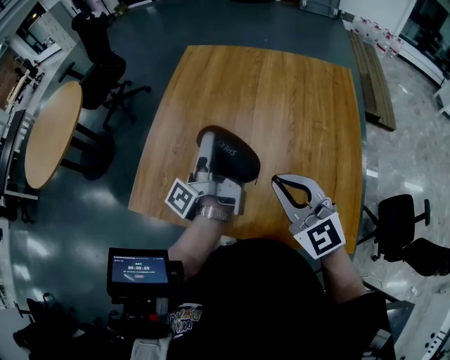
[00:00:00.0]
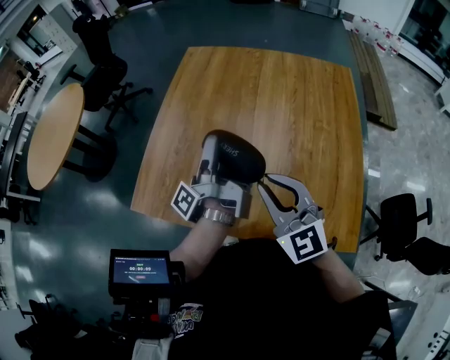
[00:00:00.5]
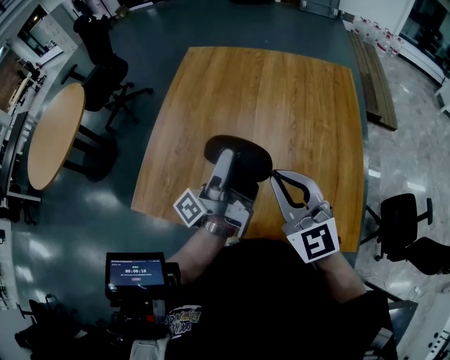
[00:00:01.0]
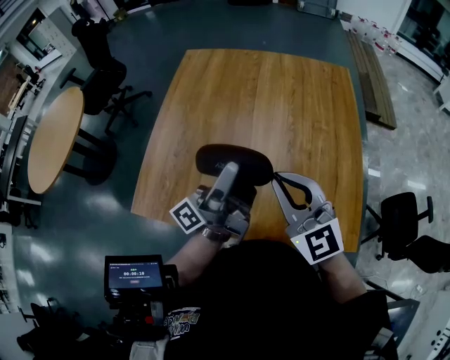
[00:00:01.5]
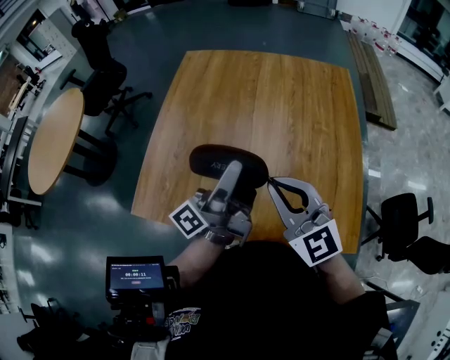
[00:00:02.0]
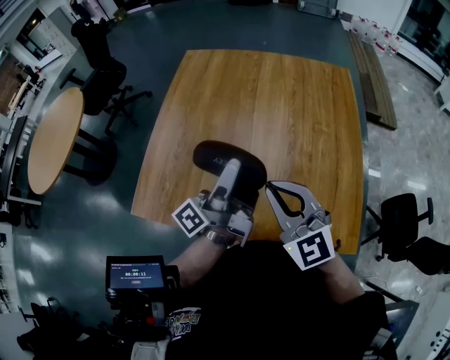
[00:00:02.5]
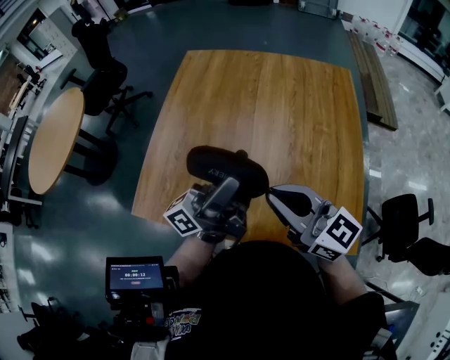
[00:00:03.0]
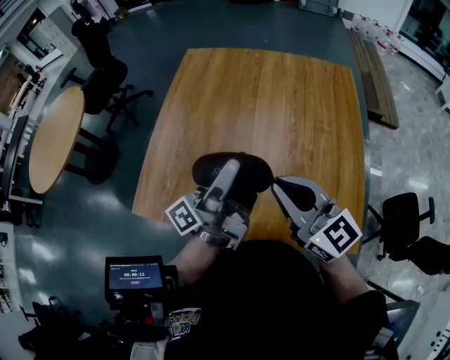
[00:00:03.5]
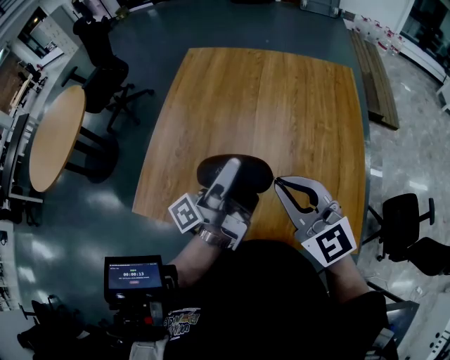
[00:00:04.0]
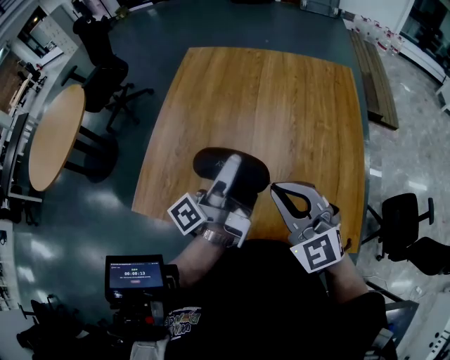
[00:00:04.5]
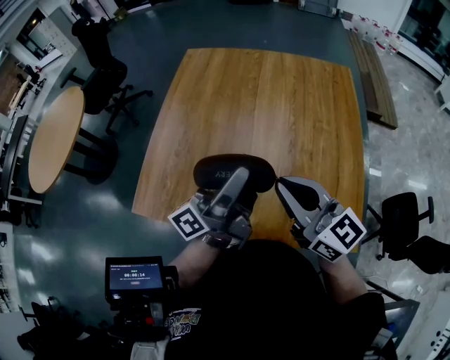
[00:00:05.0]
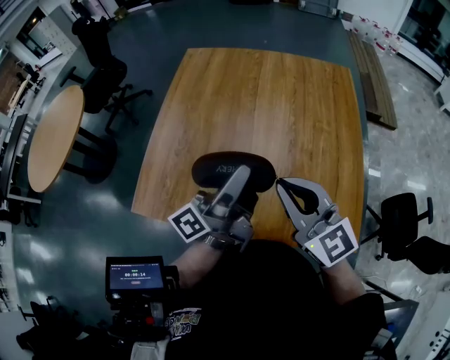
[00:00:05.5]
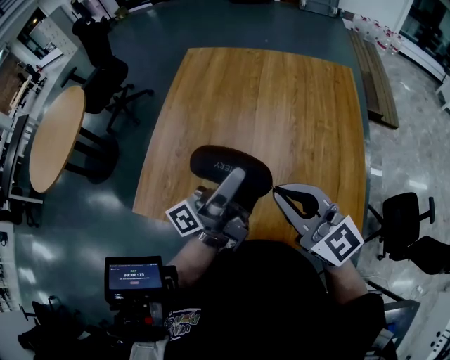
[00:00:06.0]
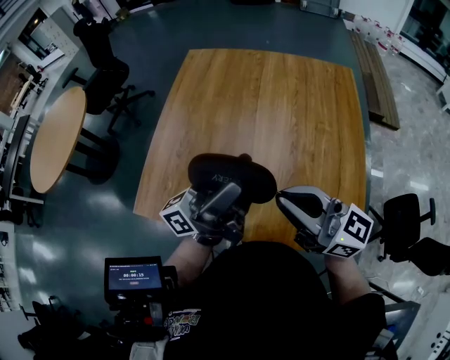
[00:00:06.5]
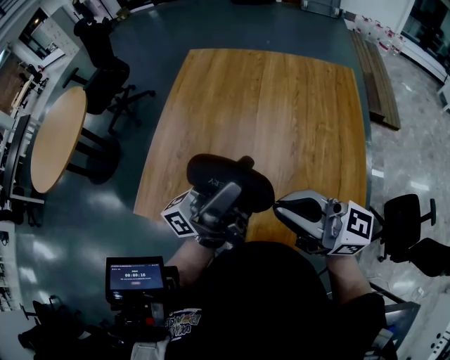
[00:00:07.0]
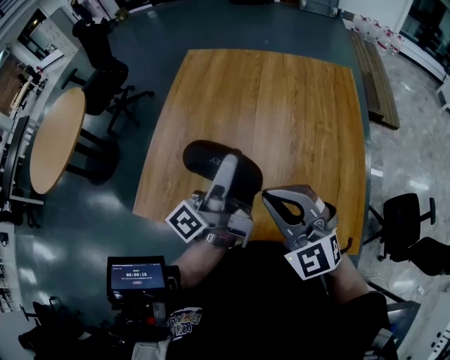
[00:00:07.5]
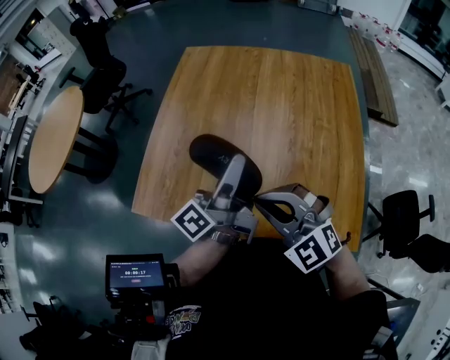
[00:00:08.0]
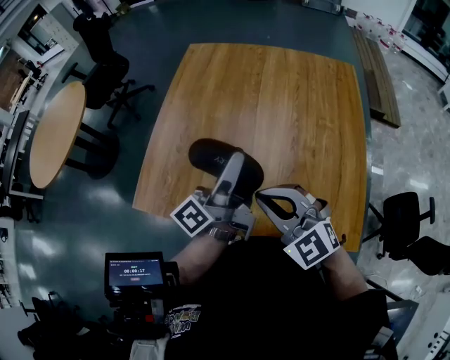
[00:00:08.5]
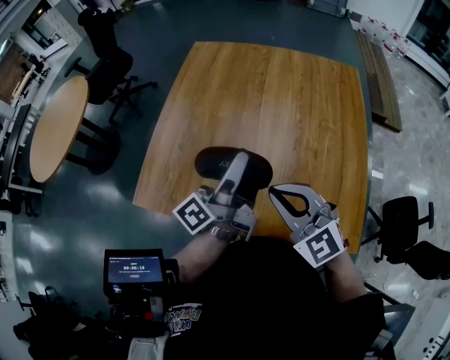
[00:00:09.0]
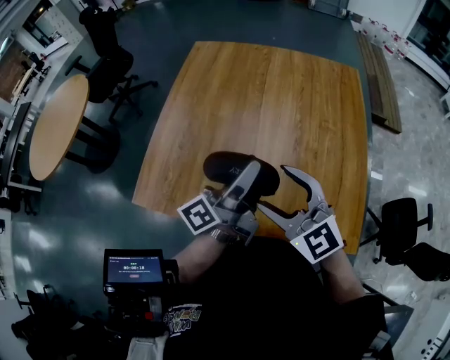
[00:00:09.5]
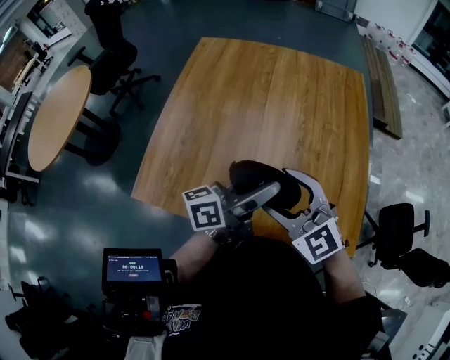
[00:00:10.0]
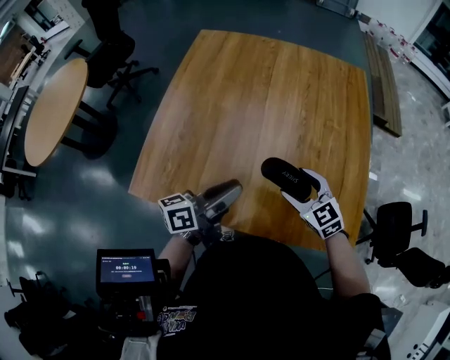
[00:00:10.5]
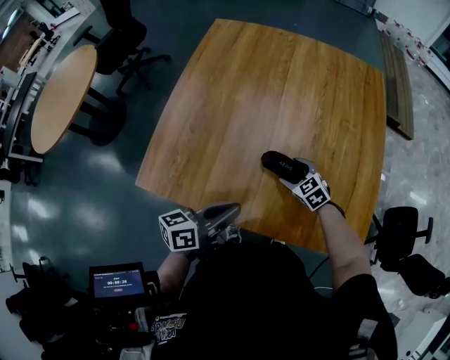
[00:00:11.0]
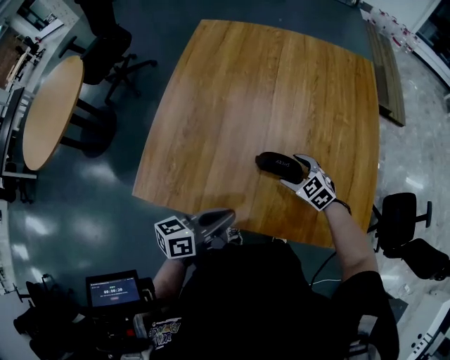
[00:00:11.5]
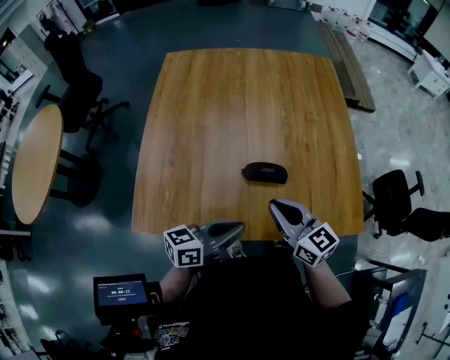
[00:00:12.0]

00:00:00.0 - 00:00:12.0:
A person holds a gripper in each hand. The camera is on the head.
00:00:00.0 - 00:00:02.0: The left gripper goes approximately 10 cm backward, to the right and upward, and changes its angle by some 30 degrees.
00:00:06.0 - 00:00:08.0: The right gripper moves some 5 cm, and changes its angle by some 40 degrees. The left gripper goes upward and returns, approximately 5 cm each way.
00:00:08.0 - 00:00:10.0: The left gripper travels backward by roughly 5 cm, and turns by some 30 degrees; the right gripper opens its fingers.
00:00:10.0 - 00:00:12.0: The left gripper shifts some 15 cm downward, backward and to the left, changes its angle by about 30 degrees, and closes its fingers; the right gripper moves some 30 cm downward and comes back, twists approximately 40 degrees clockwise, seen from behind, and closes up.

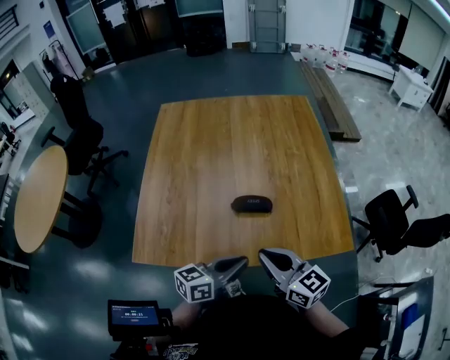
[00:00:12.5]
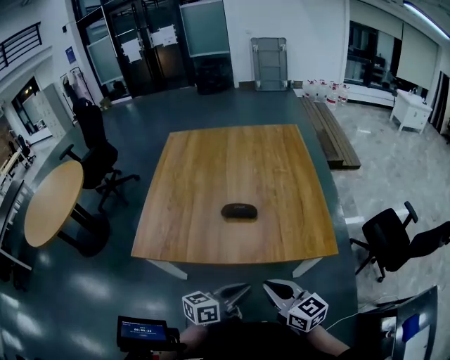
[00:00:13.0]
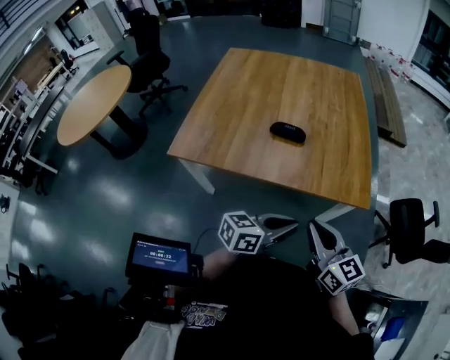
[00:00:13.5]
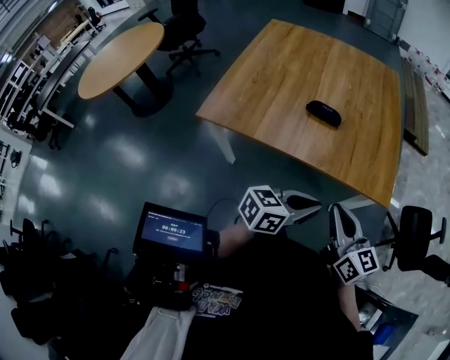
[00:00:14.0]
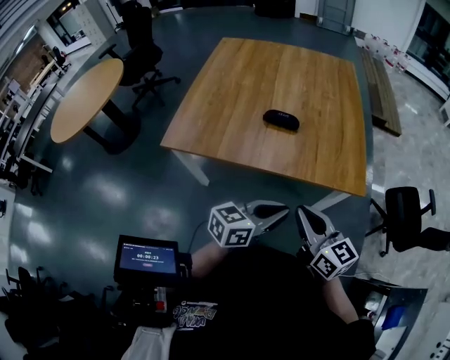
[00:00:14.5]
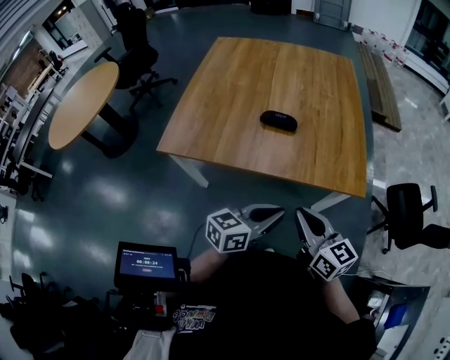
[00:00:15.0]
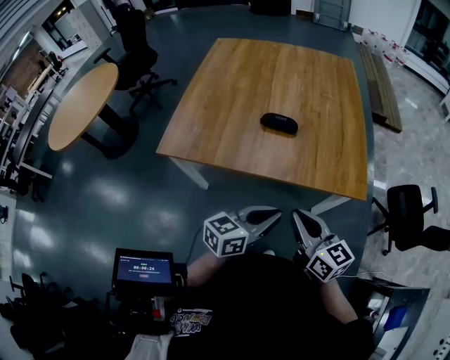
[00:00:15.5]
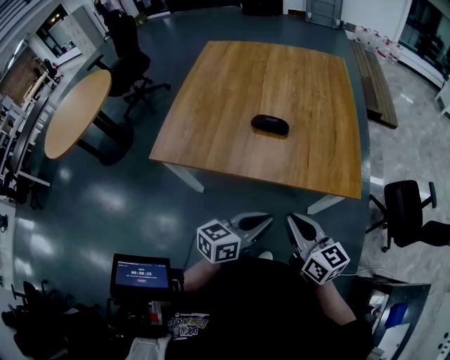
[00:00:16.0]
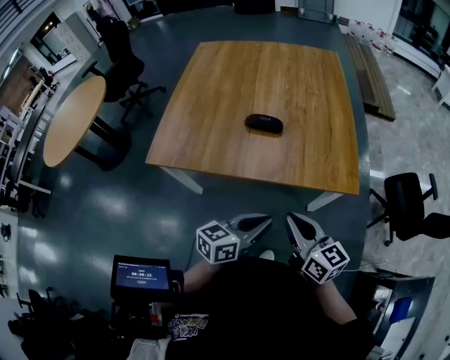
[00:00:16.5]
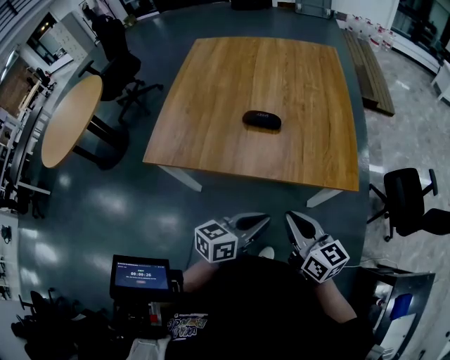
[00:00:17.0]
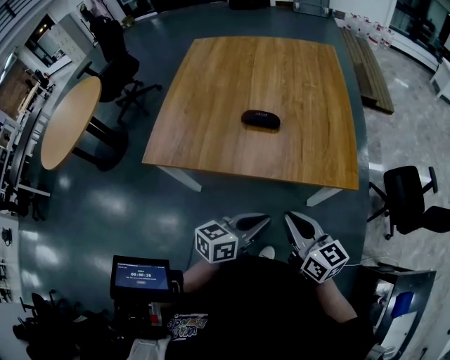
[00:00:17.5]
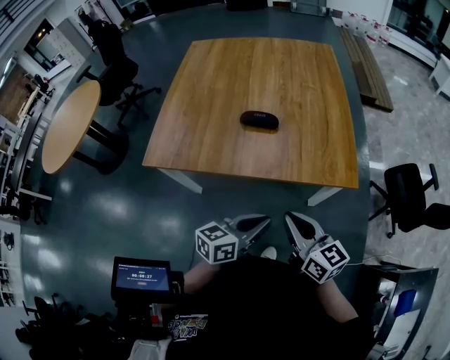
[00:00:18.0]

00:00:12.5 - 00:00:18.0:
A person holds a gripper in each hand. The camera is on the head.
00:00:12.5 - 00:00:14.5: The two grippers go roughly 20 cm backward and to the right.
00:00:14.5 - 00:00:18.0: The grippers make only small movements.

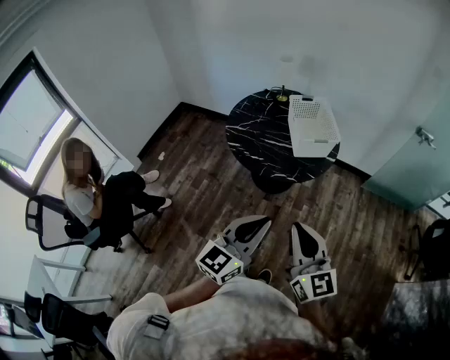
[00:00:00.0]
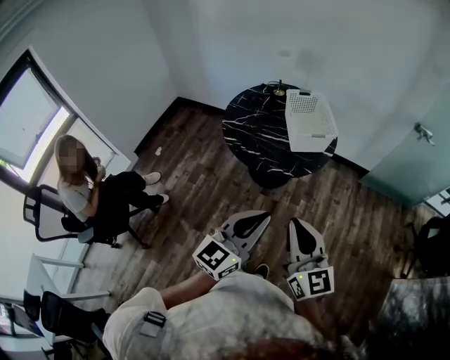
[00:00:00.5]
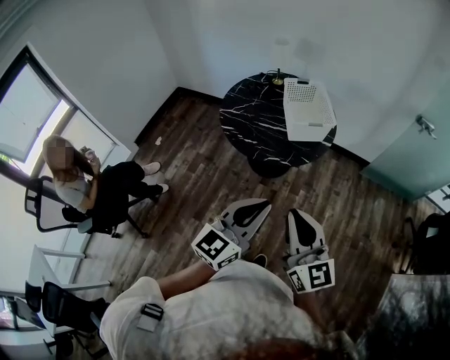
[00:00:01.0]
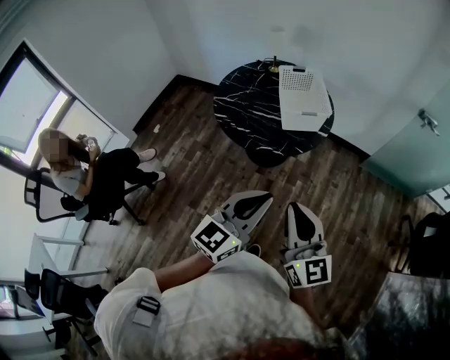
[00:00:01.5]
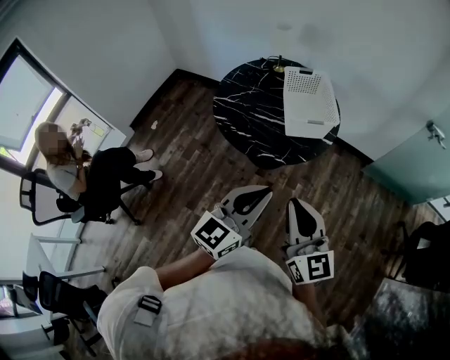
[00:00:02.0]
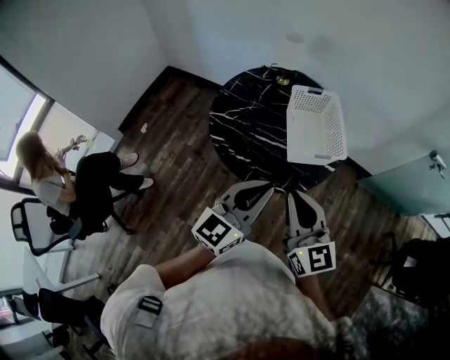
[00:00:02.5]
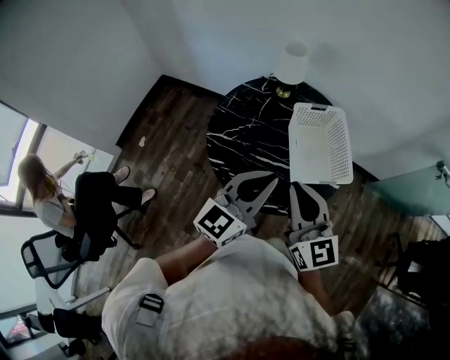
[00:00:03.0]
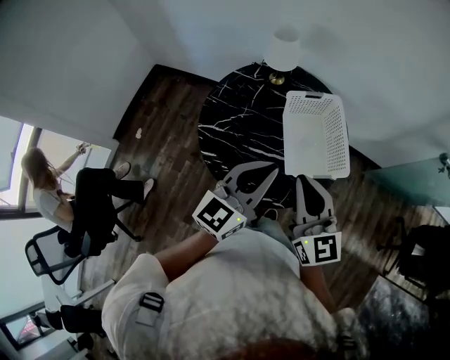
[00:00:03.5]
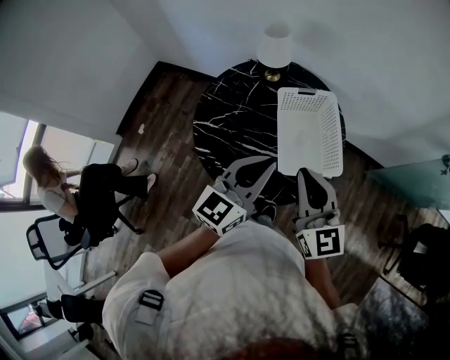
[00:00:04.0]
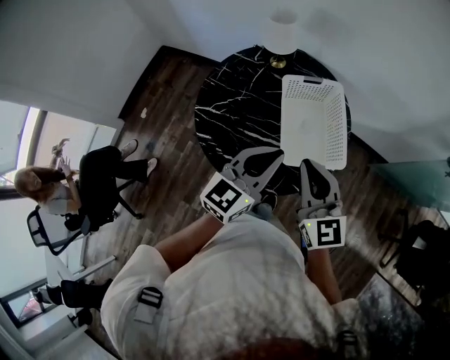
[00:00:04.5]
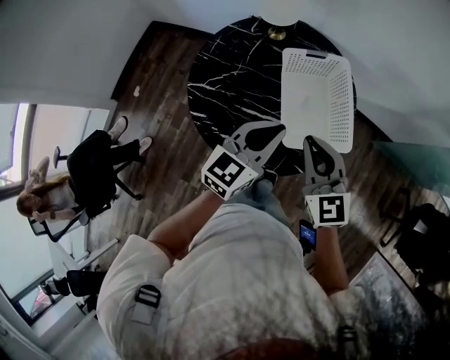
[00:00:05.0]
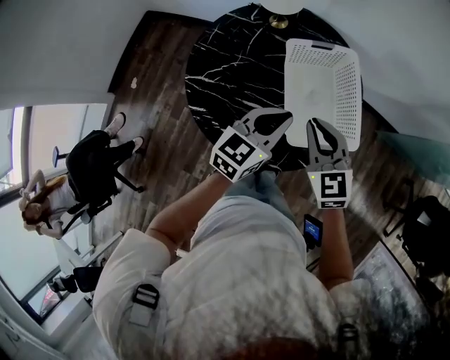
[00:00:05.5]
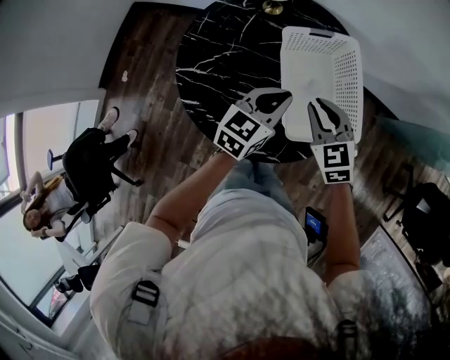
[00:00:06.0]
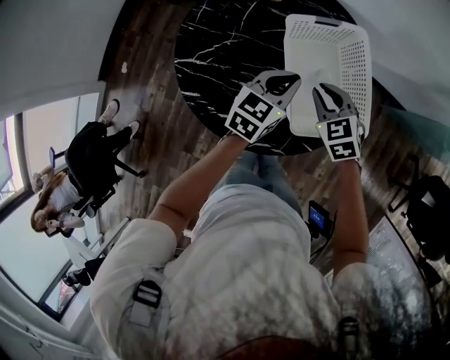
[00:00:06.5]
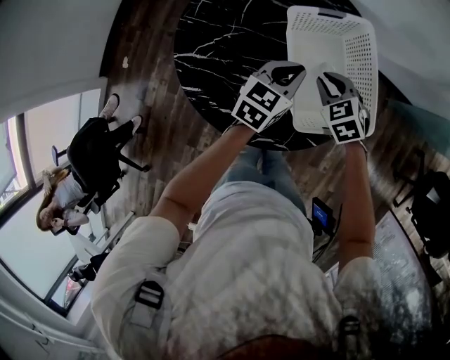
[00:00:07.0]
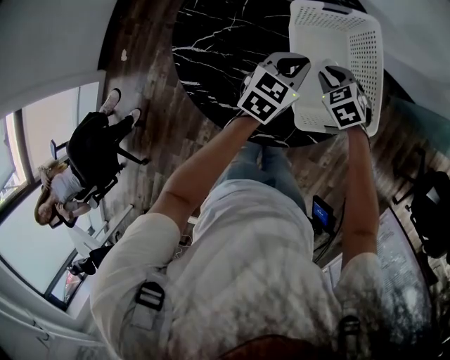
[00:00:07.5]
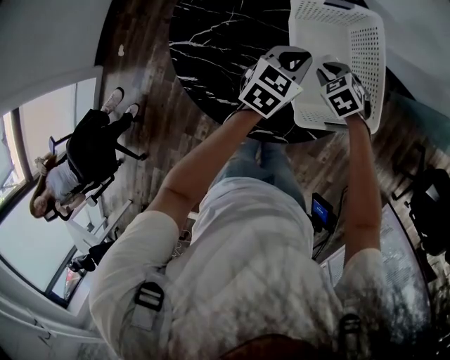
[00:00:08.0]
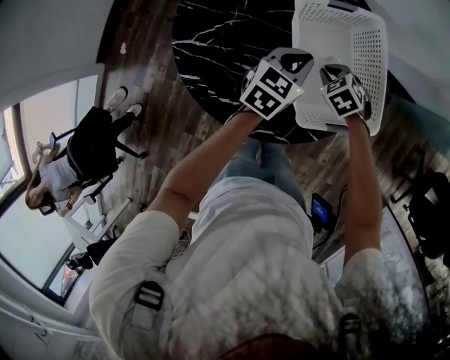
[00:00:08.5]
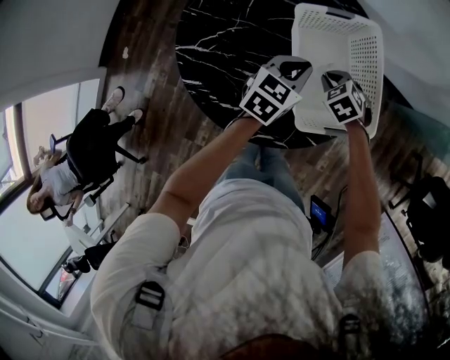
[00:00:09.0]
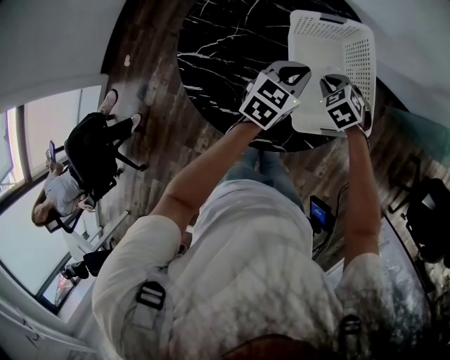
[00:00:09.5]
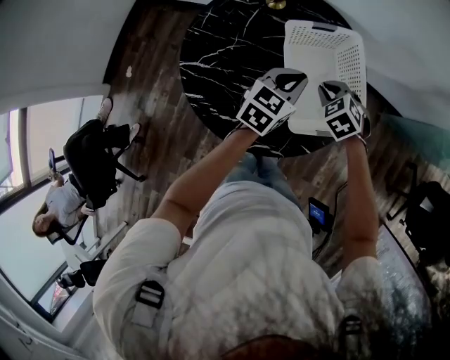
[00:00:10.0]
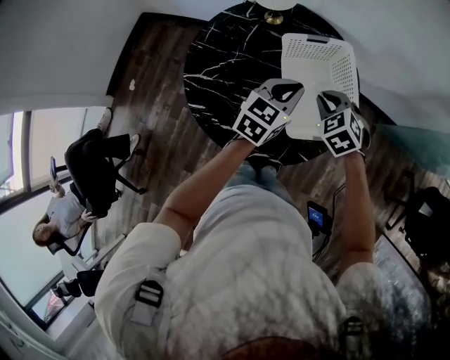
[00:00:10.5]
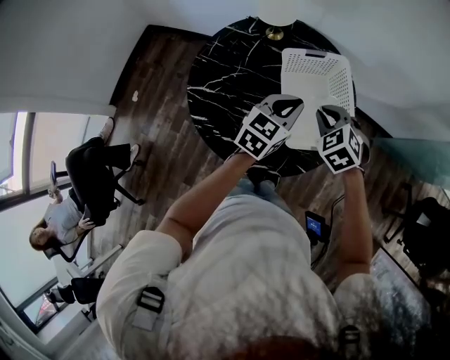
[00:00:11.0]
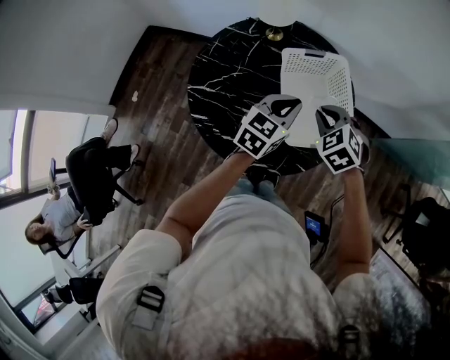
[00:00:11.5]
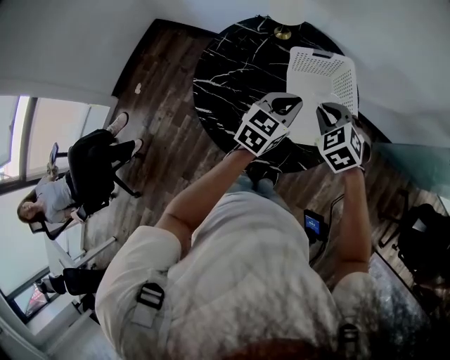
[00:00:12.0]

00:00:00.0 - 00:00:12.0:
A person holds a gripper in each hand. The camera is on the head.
00:00:00.0 - 00:00:02.0: The two grippers go approximately 15 cm forward and to the right.
00:00:02.0 - 00:00:04.0: The two grippers go some 40 cm forward.
00:00:04.0 - 00:00:06.0: The grippers both shift downward and forward by roughly 25 cm. The left gripper changes its angle by about 20 degrees; the right gripper points its fingers approximately 30 degrees further downward.
00:00:06.0 - 00:00:08.0: The right gripper heads downward, covering approximately 20 cm, and tilts its fingers about 30 degrees downward; the left gripper goes approximately 10 cm downward and forward.
00:00:08.0 - 00:00:10.0: Both grippers move upward, roughly 10 cm.
00:00:10.0 - 00:00:12.0: The left gripper is displaced upward and backward by about 10 cm. The right gripper is displaced upward and backward by some 15 cm.
